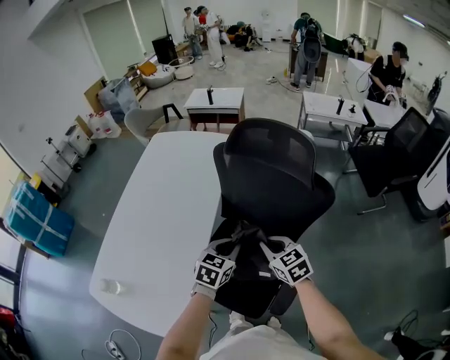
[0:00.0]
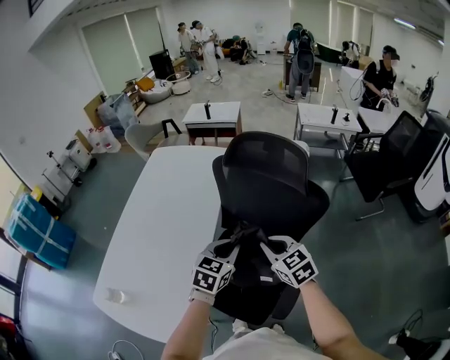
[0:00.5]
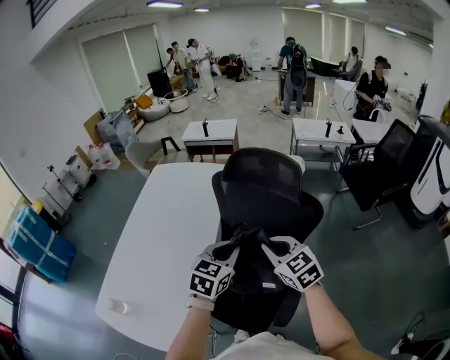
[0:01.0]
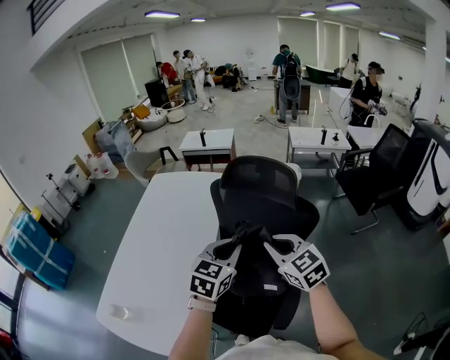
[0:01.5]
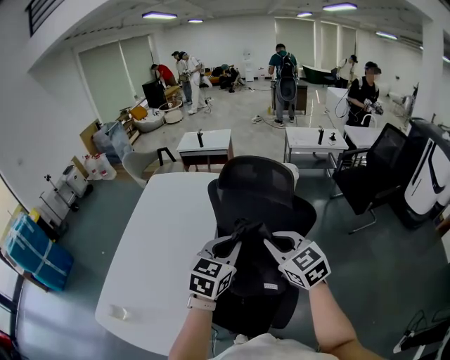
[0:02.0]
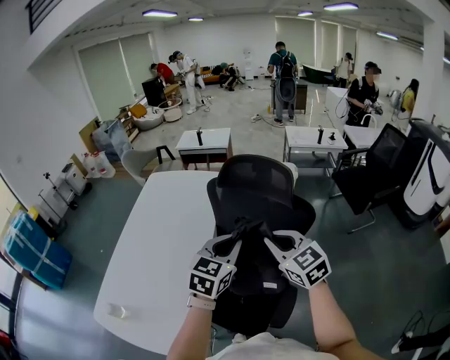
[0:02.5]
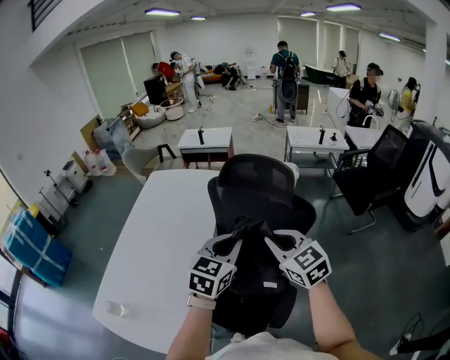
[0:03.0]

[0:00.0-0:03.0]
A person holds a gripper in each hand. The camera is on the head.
0:00.0 to 0:01.5: The grippers both shift upward by roughly 20 cm.
0:01.5 to 0:03.0: The grippers make only small movements.

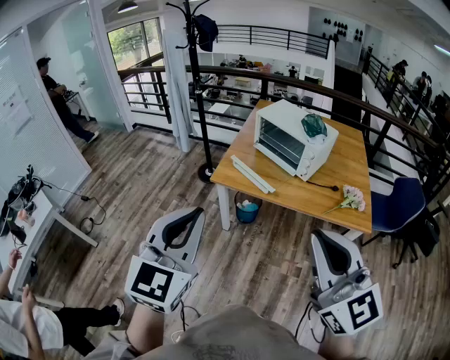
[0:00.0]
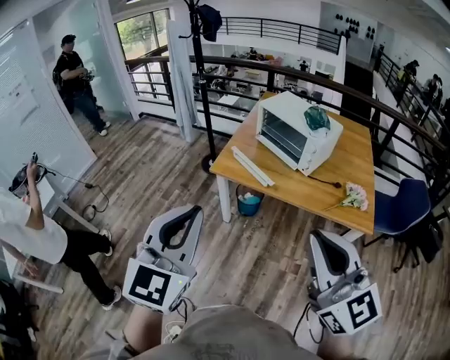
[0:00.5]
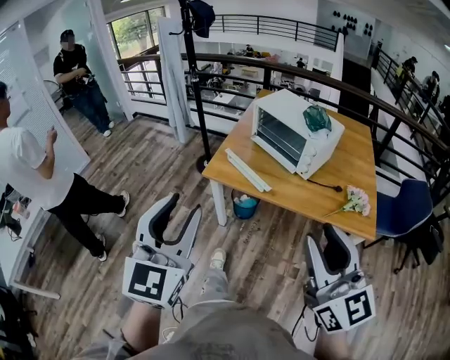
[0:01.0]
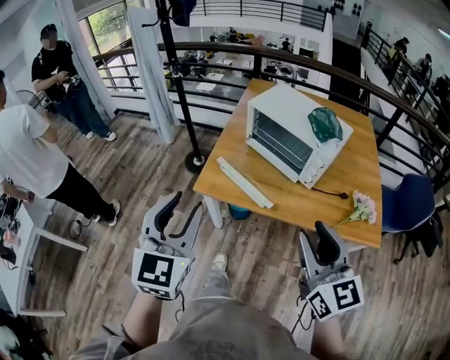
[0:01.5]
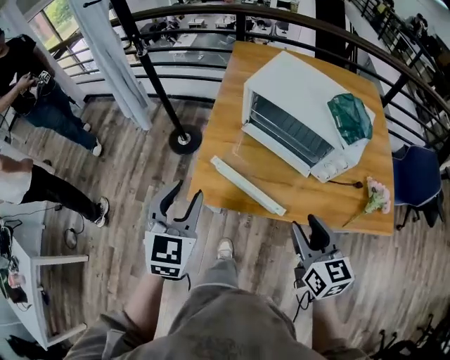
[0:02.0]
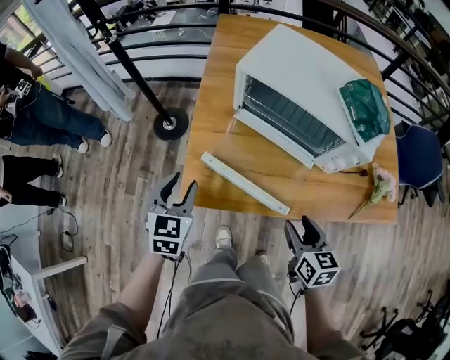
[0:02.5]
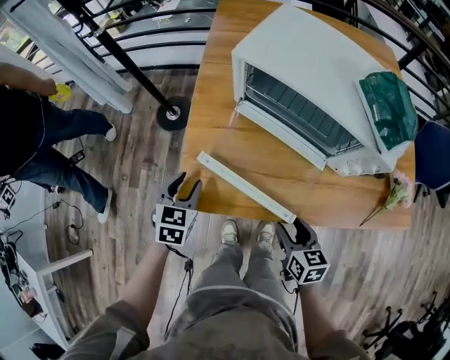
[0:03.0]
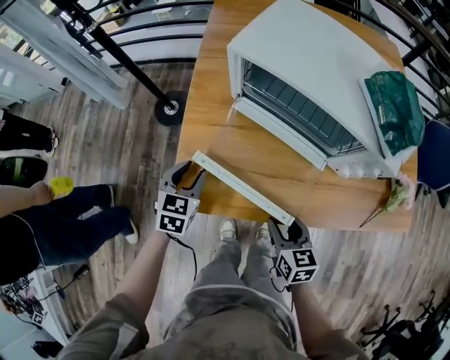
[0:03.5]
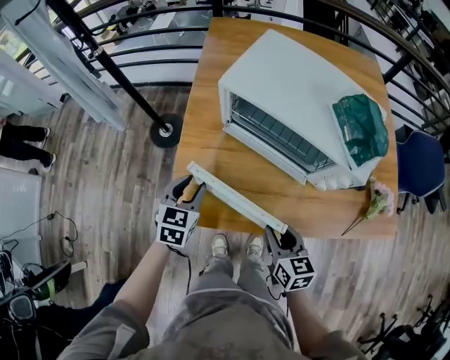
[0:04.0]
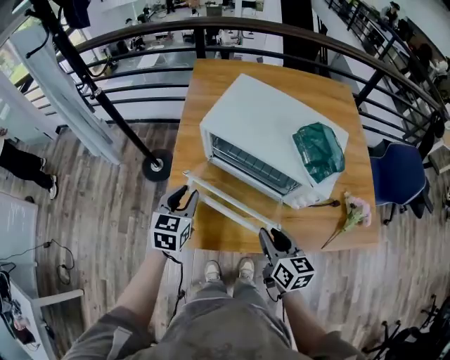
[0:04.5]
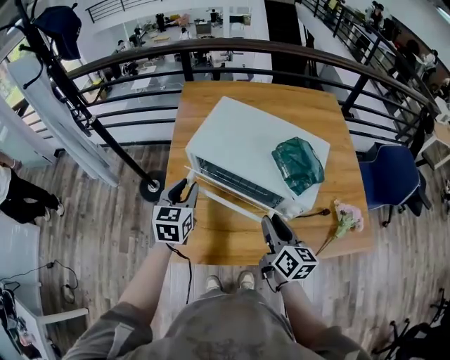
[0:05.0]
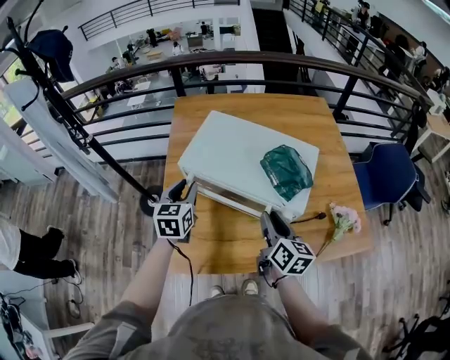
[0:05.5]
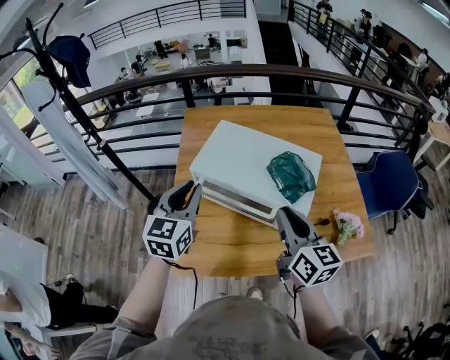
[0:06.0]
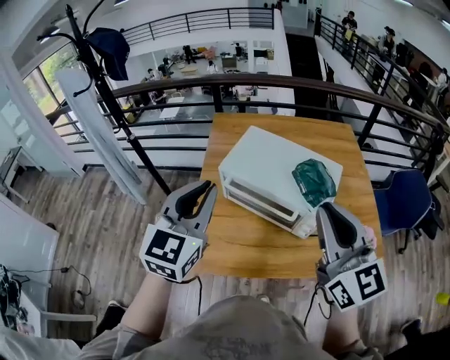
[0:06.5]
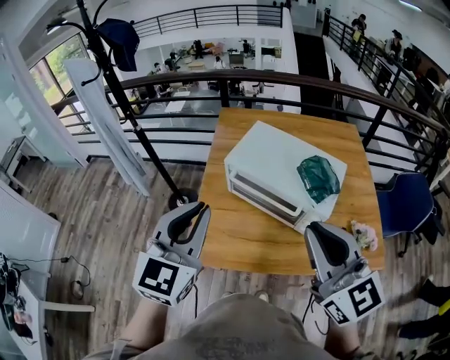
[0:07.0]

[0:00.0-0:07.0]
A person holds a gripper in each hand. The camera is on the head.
0:00.0 to 0:02.0: Both grippers travel together forward and downward, some 50 cm. The left gripper opens its fingers; the right gripper turns by some 40 degrees, and opens up.
0:02.0 to 0:03.5: The left gripper moves downward and forward, about 30 cm, and turns by roughly 20 degrees; the right gripper heads downward, covering roughly 25 cm.
0:03.5 to 0:05.0: The two grippers go approximately 25 cm upward, forward and to the right. The right gripper swivels some 30 degrees.
0:05.0 to 0:07.0: The right gripper heads upward, covering approximately 30 cm, rotates around the line of its fingers by roughly 40 degrees, counterclockwise from behind, and closes its fingers, while the left gripper travels upward and backward by roughly 30 cm, and rotates some 20 degrees.

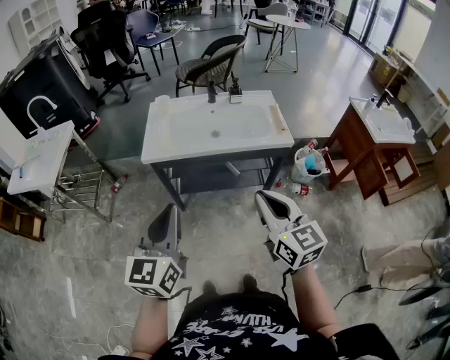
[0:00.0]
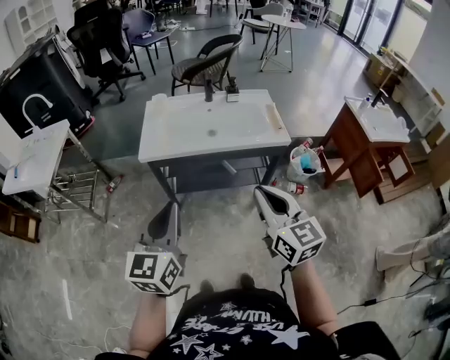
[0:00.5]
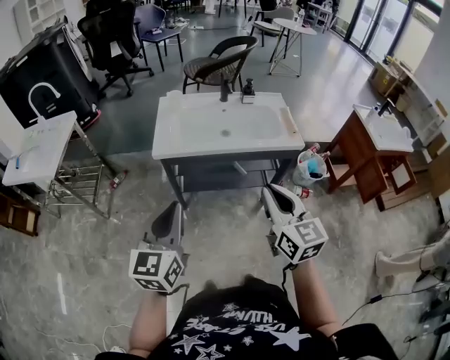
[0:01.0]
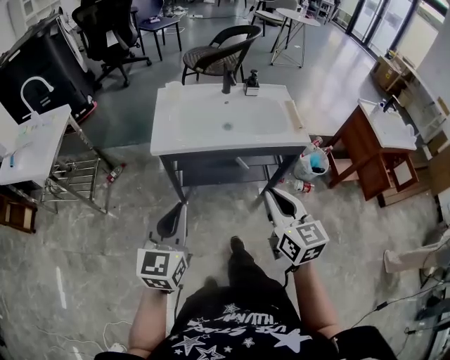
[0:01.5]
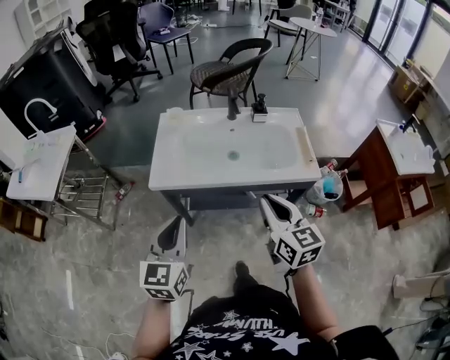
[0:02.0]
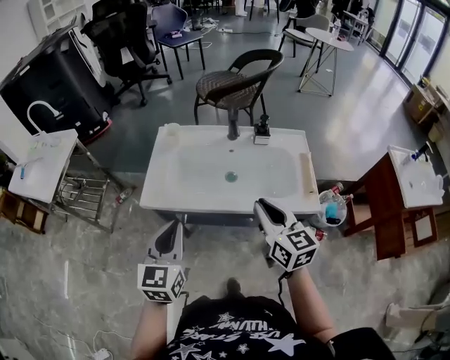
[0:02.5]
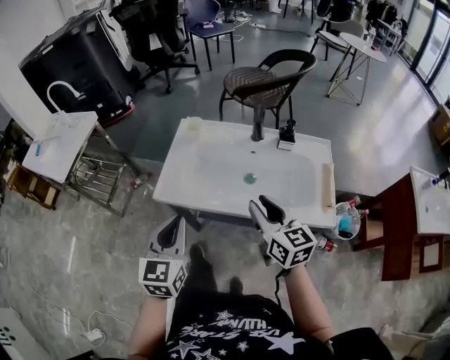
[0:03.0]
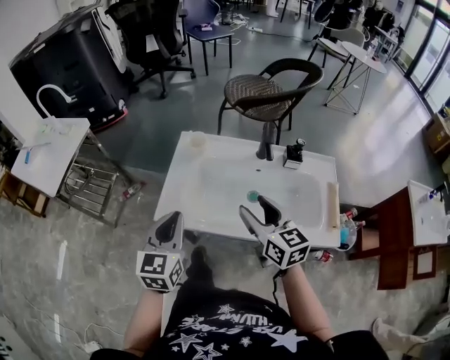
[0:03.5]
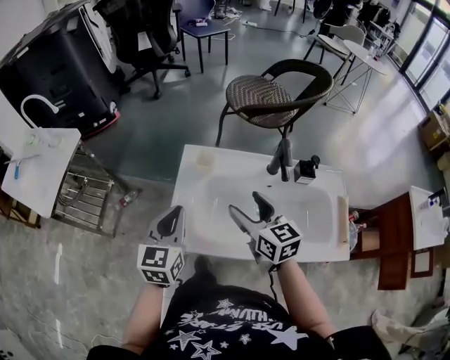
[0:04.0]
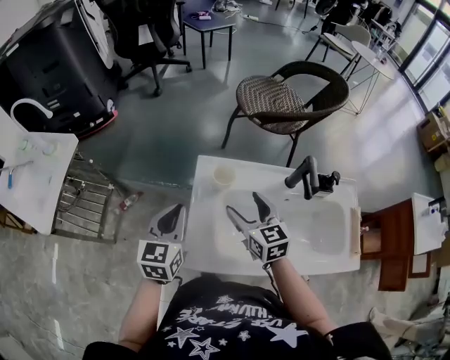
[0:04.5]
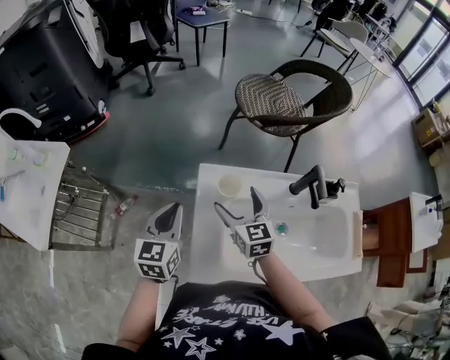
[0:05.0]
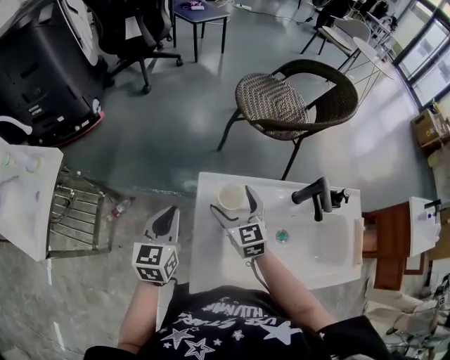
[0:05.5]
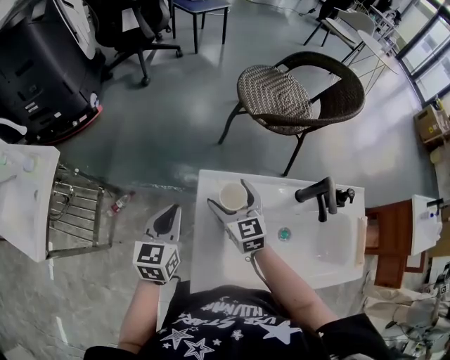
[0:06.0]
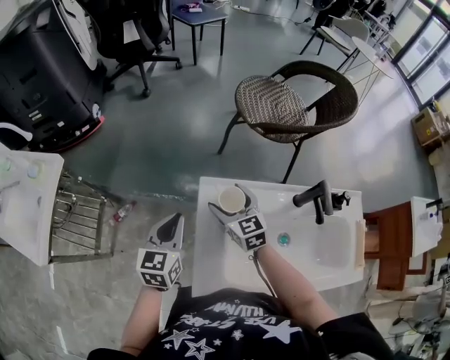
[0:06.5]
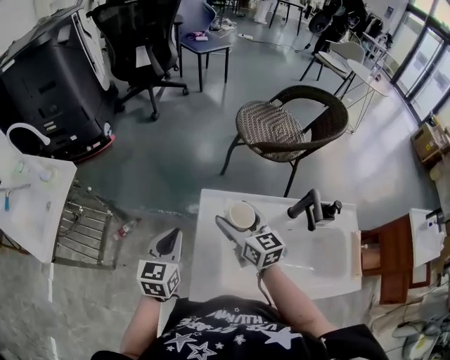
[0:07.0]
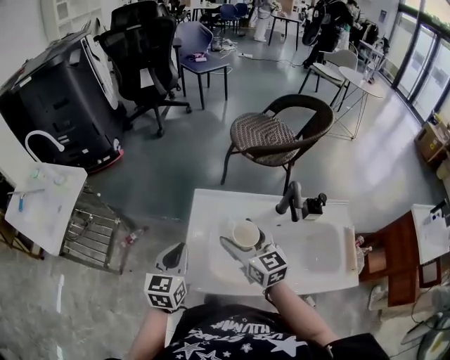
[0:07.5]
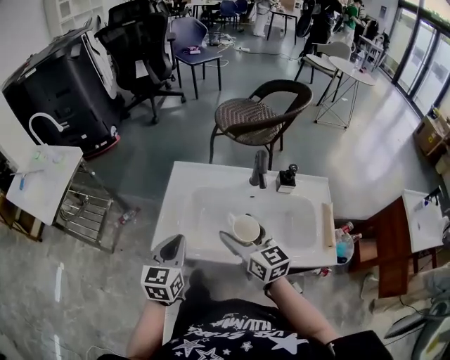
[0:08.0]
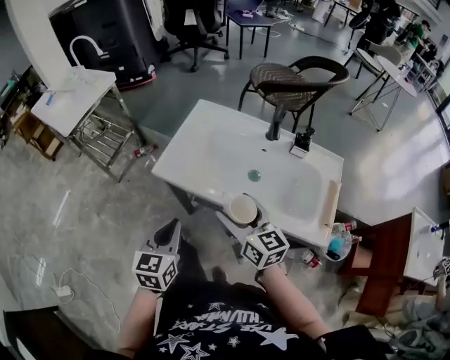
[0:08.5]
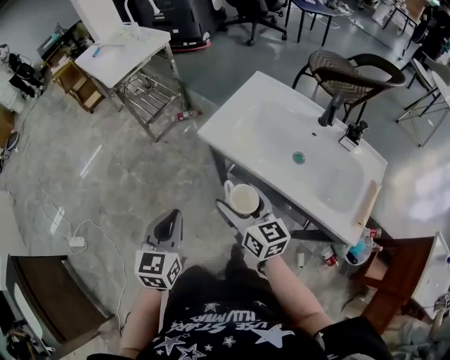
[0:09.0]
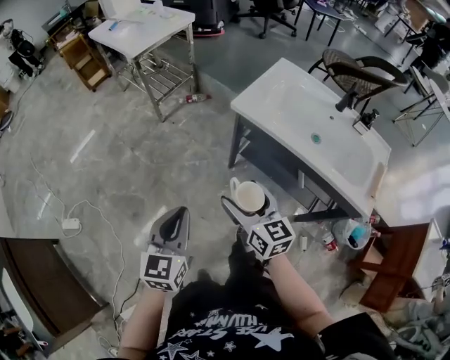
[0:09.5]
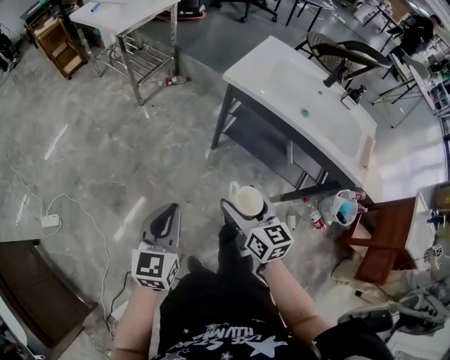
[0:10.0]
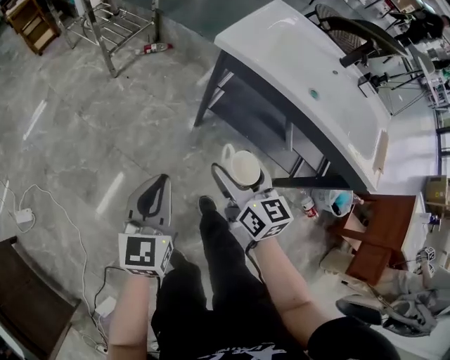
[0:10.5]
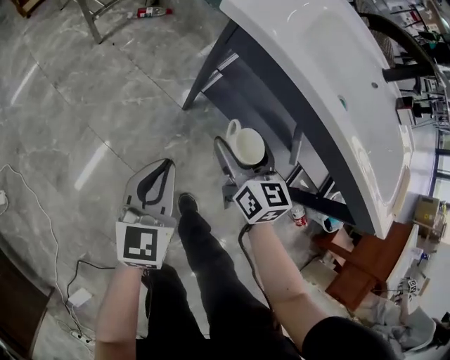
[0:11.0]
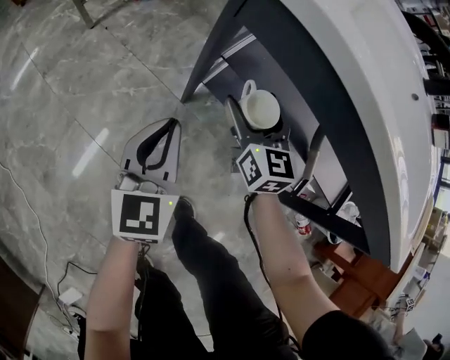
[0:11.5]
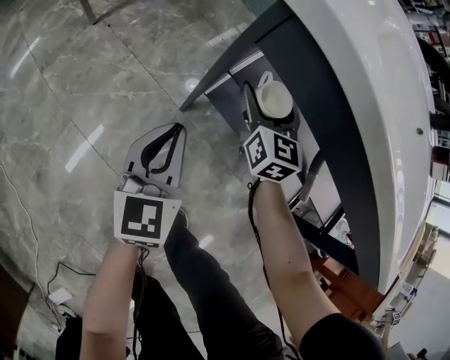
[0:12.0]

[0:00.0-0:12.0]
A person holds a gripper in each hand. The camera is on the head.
0:00.0 to 0:02.0: The right gripper moves forward, some 20 cm, while the left gripper moves forward and downward, about 15 cm.
0:02.0 to 0:04.0: The grippers both shift forward by approximately 30 cm. The right gripper opens up.
0:04.0 to 0:06.0: The grippers both shift forward, to the left and downward by about 25 cm.
0:06.0 to 0:08.0: Both grippers move backward and to the right, about 30 cm. The right gripper swivels approximately 20 degrees.
0:08.0 to 0:10.0: Both grippers are carried approximately 50 cm. The left gripper changes its angle by some 20 degrees; the right gripper rotates about 20 degrees.
0:10.0 to 0:12.0: The left gripper moves forward, downward and to the right, about 50 cm, while the right gripper travels forward and downward by some 50 cm, and turns by some 20 degrees.

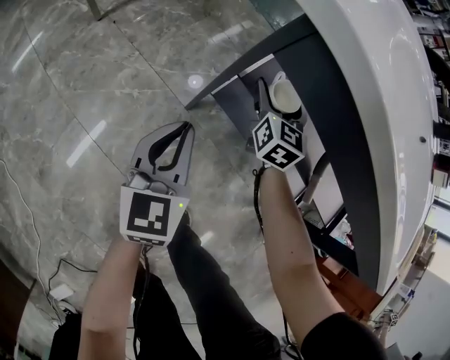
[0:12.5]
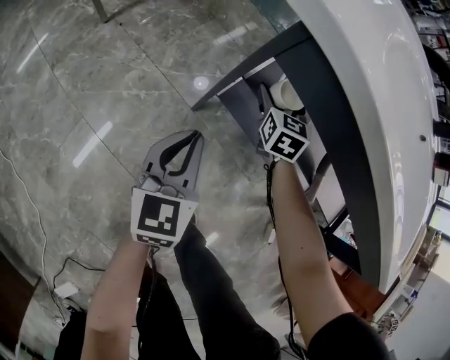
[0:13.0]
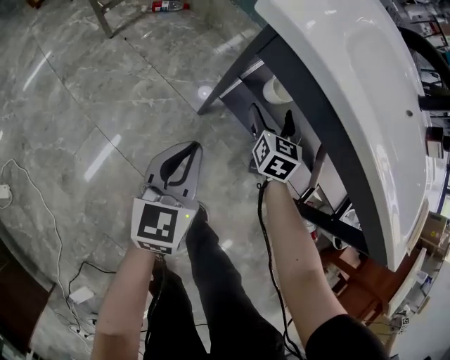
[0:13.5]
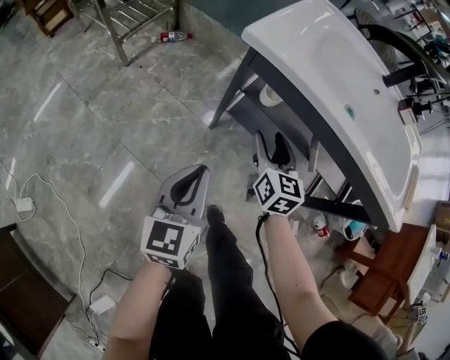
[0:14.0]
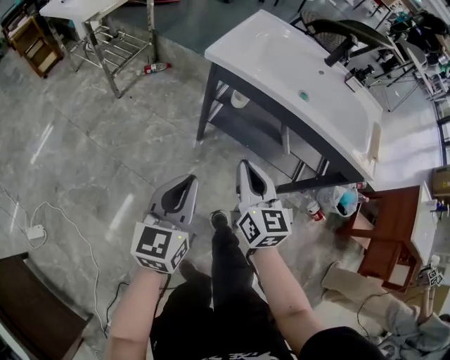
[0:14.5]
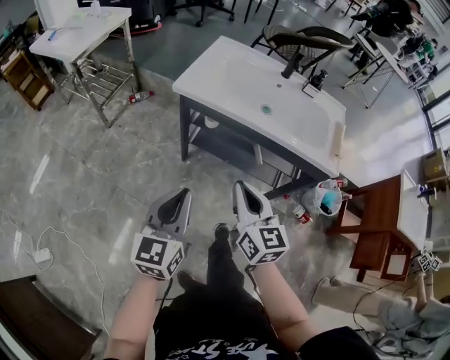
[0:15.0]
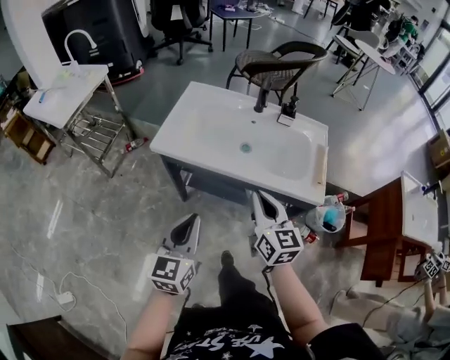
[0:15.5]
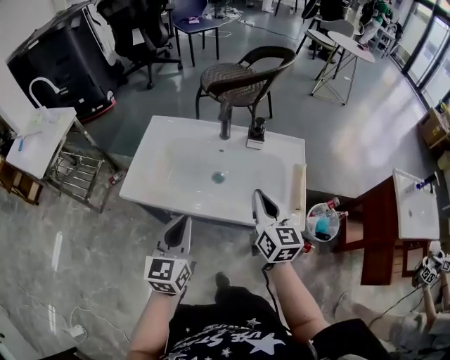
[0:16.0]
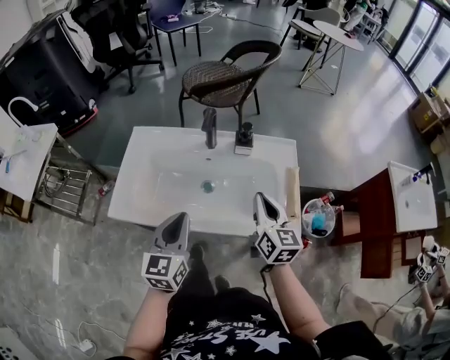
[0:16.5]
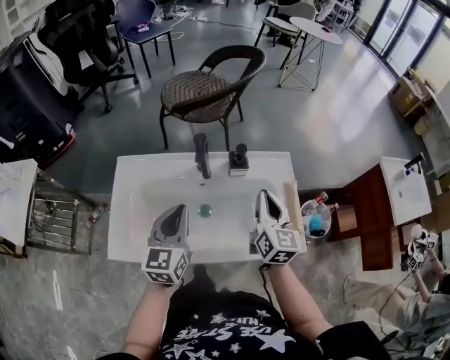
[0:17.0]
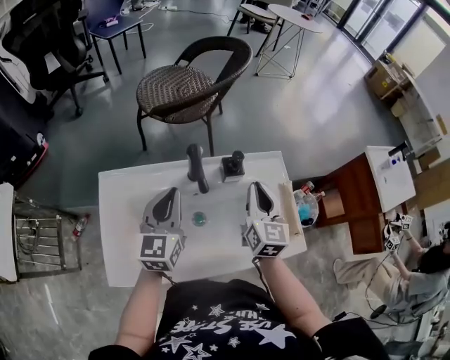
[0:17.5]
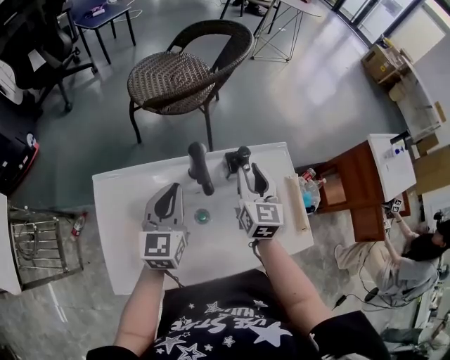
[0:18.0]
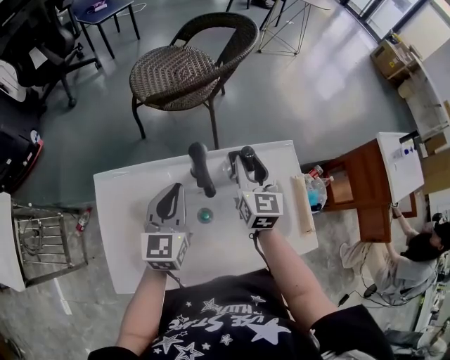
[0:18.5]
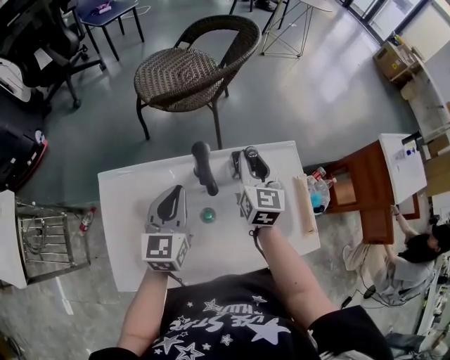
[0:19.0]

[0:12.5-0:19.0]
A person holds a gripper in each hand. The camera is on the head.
0:12.5 to 0:14.5: The right gripper moves backward and upward, some 50 cm, and closes its fingers. The left gripper travels upward and backward by approximately 35 cm.
0:14.5 to 0:17.0: Both grippers are carried approximately 50 cm. The left gripper rotates approximately 30 degrees, while the right gripper changes its angle by about 40 degrees.
0:17.0 to 0:19.0: The right gripper heads forward and to the left, covering about 15 cm. The left gripper is displaced forward by approximately 10 cm.
